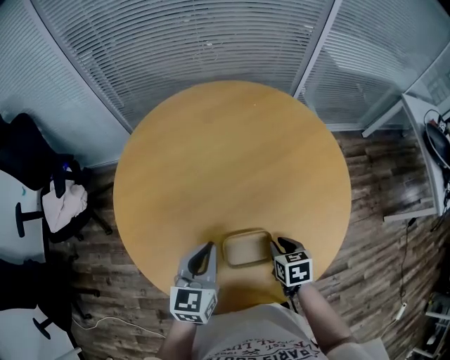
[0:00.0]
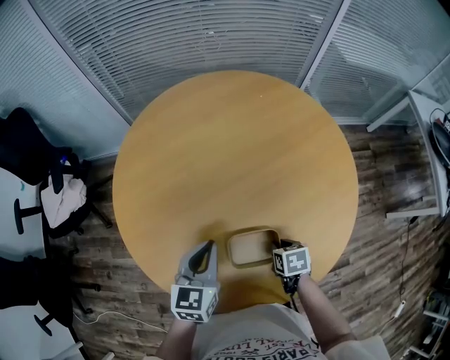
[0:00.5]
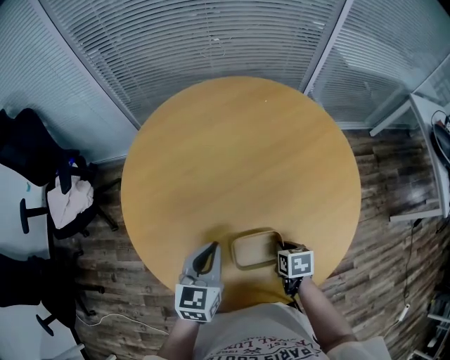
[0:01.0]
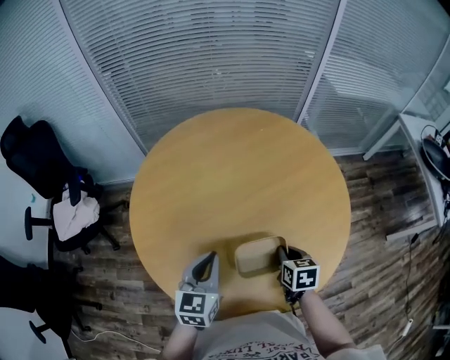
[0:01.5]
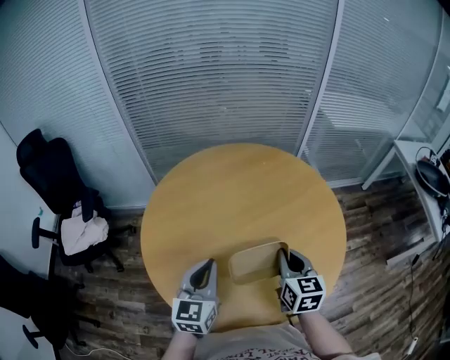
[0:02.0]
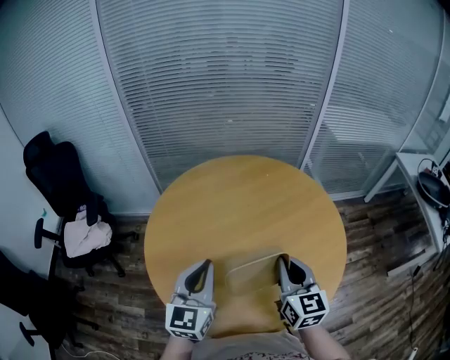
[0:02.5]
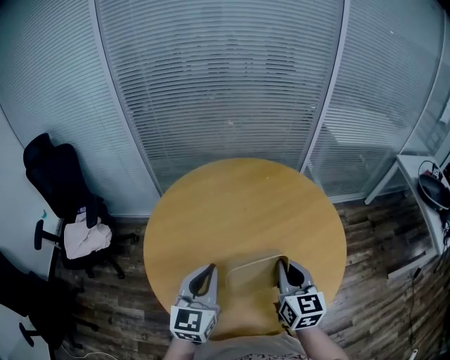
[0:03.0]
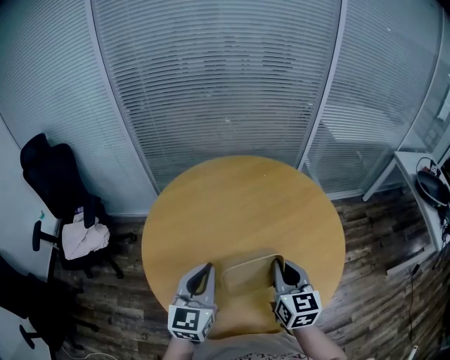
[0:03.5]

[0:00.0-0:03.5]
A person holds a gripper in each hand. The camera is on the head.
0:00.0 to 0:02.0: The left gripper shifts roughly 10 cm upward. Meanwhile the right gripper goes approximately 20 cm upward, and points its fingers approximately 30 degrees further upward.

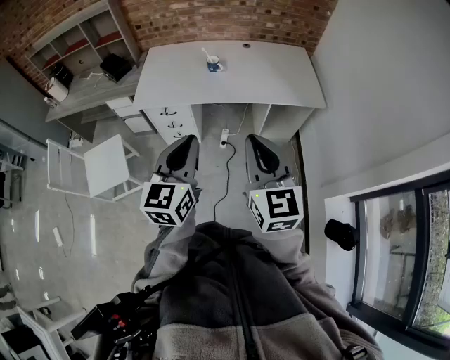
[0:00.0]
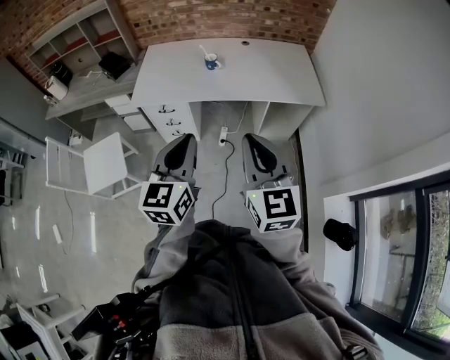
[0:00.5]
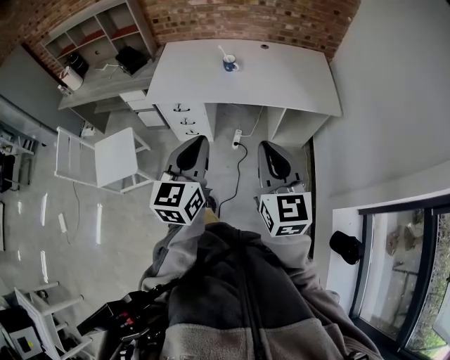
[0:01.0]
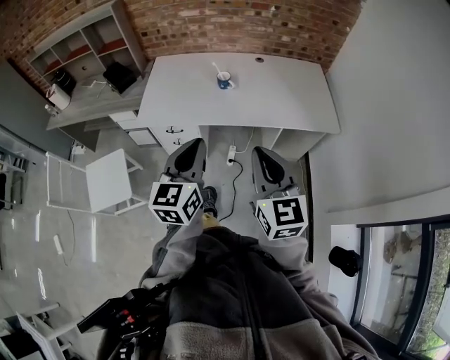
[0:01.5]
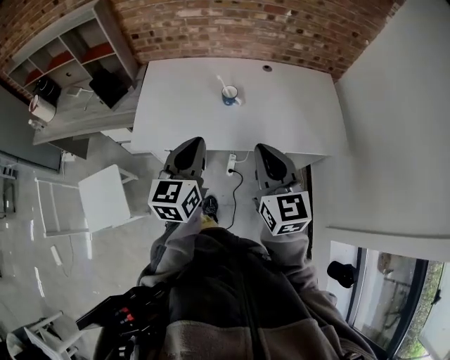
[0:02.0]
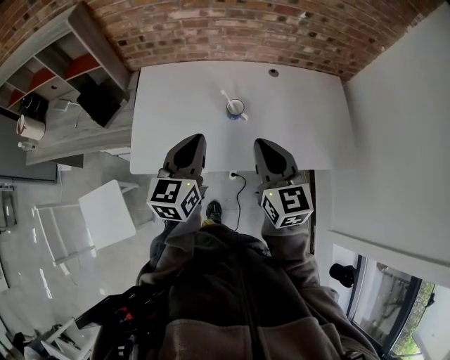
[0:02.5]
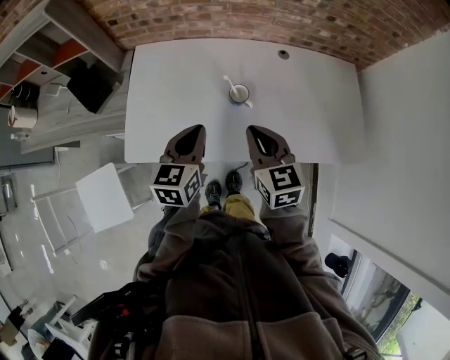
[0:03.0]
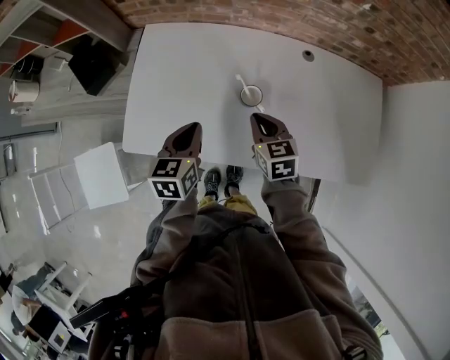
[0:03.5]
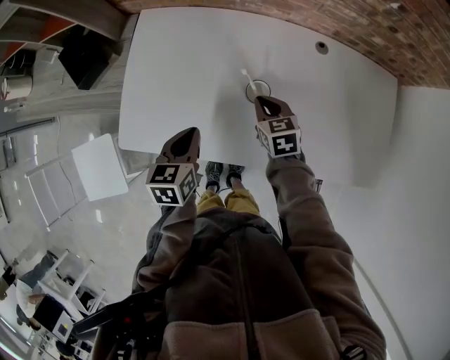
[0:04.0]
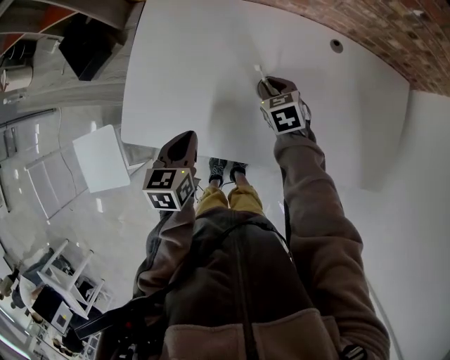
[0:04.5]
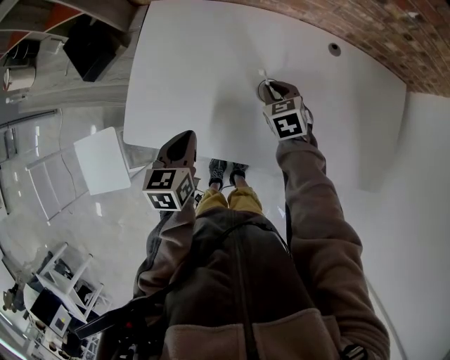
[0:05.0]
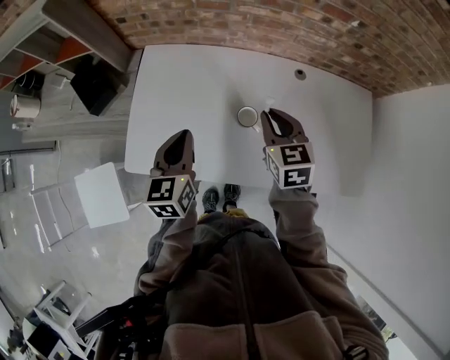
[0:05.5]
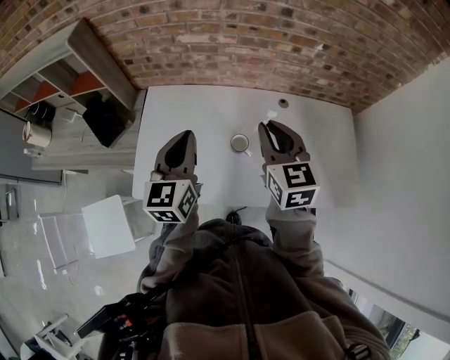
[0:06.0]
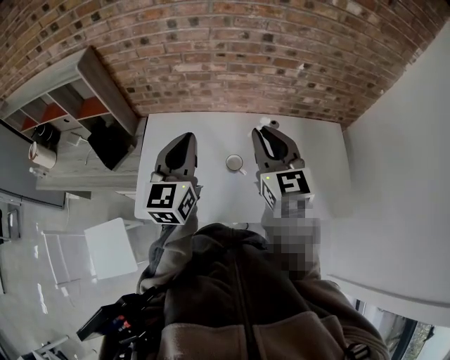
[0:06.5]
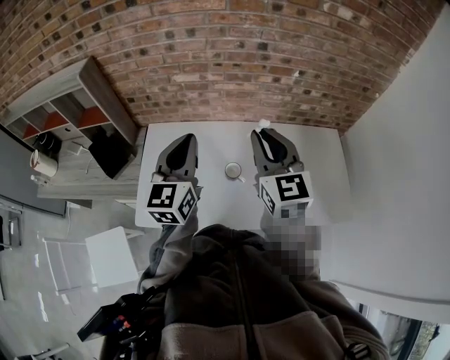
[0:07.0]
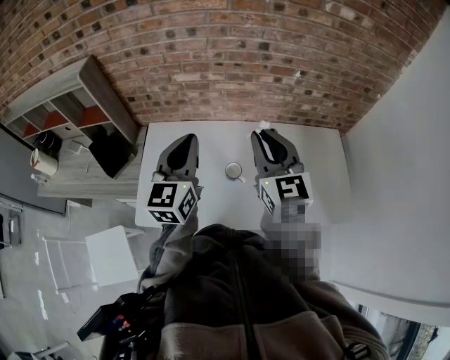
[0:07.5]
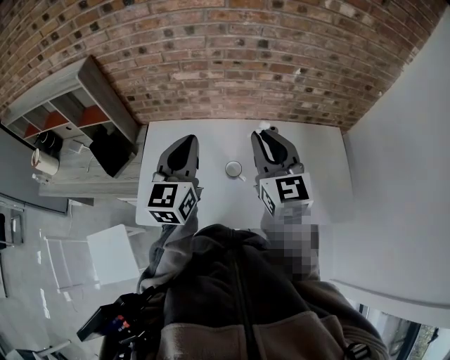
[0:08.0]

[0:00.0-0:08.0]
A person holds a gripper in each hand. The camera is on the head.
0:00.0 to 0:02.0: Both grippers travel together forward, about 30 cm.
0:02.0 to 0:04.0: The left gripper shifts some 30 cm forward and downward, and tips its fingers downward by about 30 degrees; the right gripper travels forward and downward by about 50 cm, and tilts its fingers roughly 40 degrees downward.
0:04.0 to 0:06.0: The grippers both shift upward by about 30 cm. The left gripper angles its fingers upward, by approximately 30 degrees, while the right gripper turns by about 30 degrees.
0:06.0 to 0:08.0: The two grippers go some 5 cm upward.

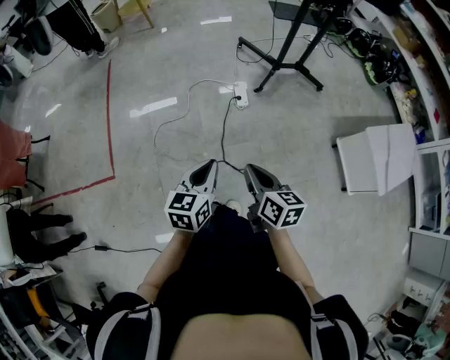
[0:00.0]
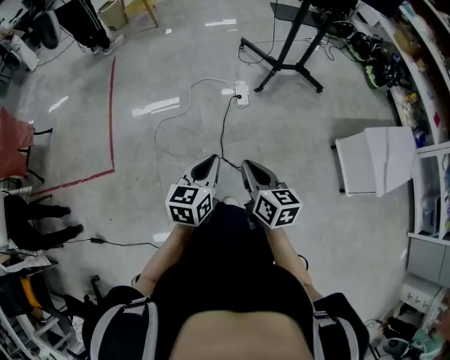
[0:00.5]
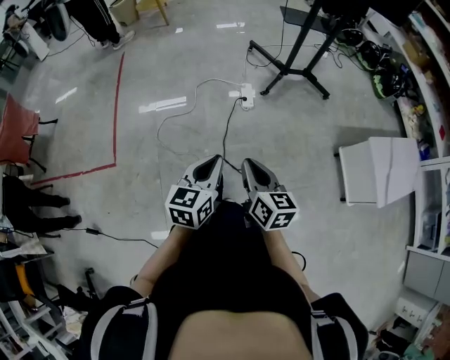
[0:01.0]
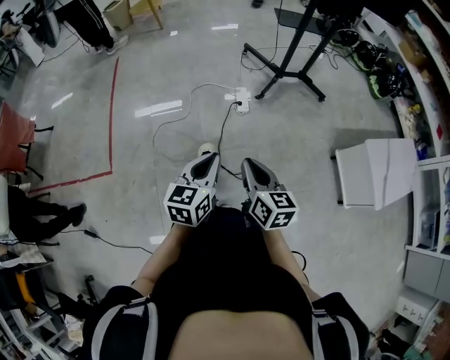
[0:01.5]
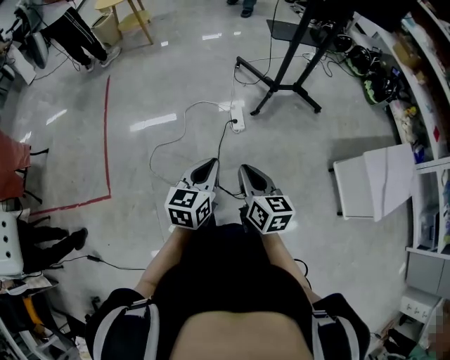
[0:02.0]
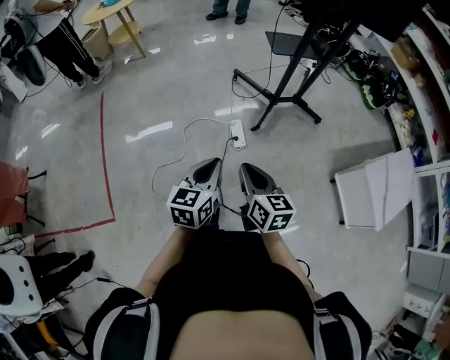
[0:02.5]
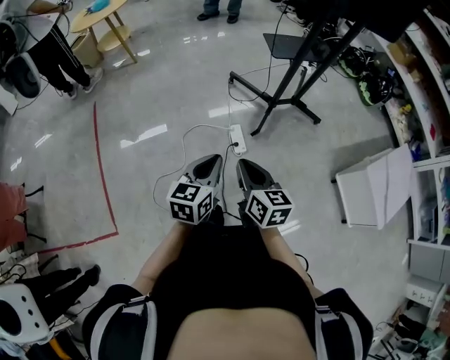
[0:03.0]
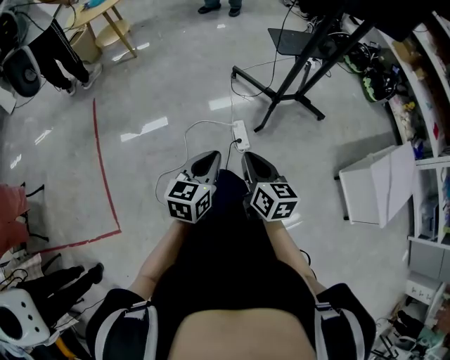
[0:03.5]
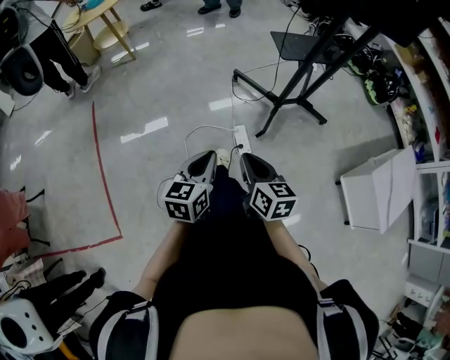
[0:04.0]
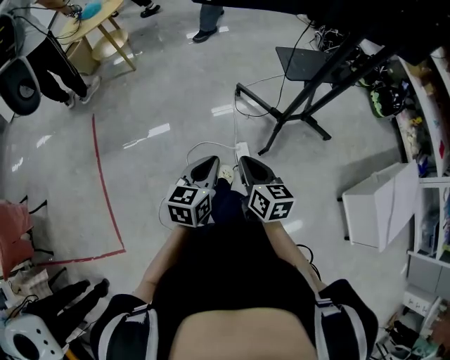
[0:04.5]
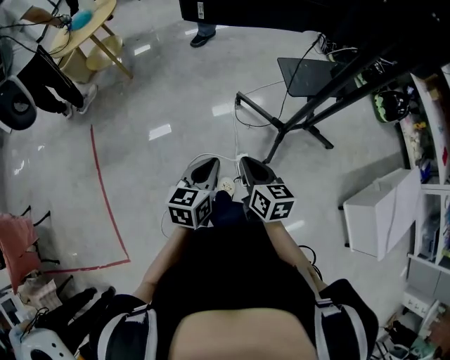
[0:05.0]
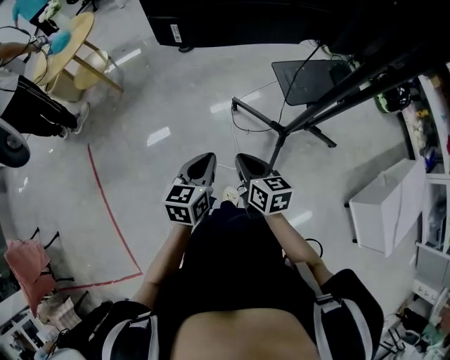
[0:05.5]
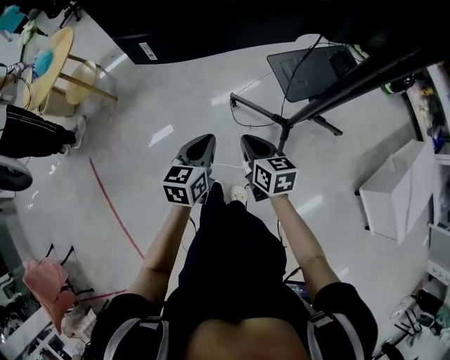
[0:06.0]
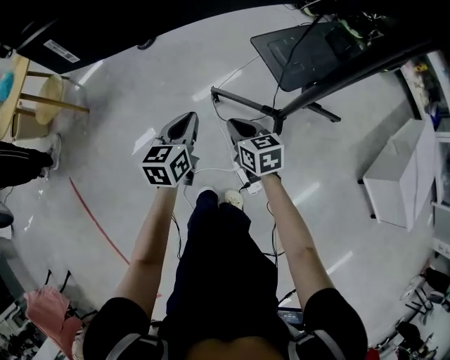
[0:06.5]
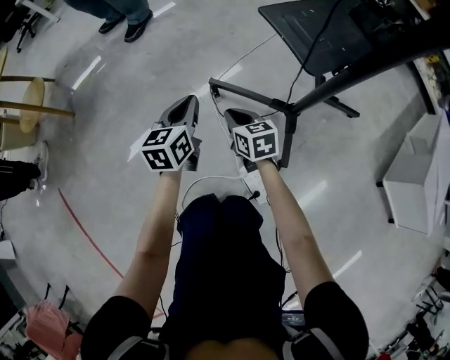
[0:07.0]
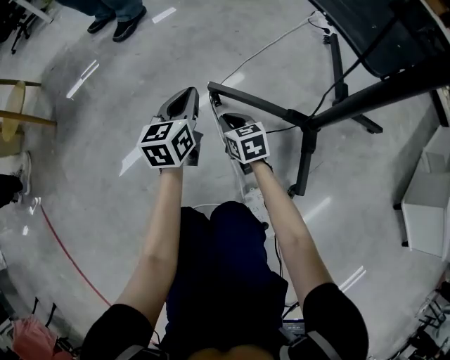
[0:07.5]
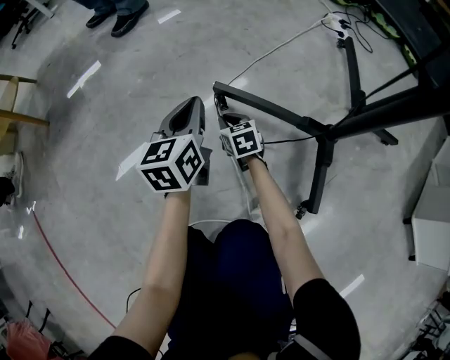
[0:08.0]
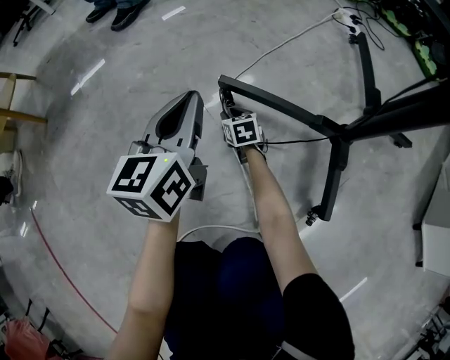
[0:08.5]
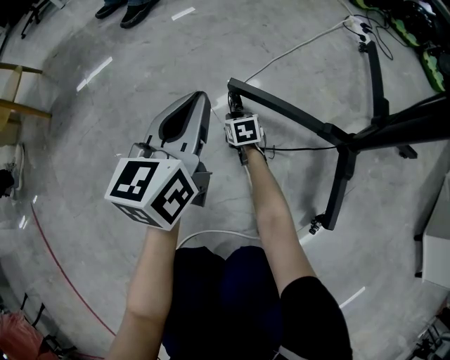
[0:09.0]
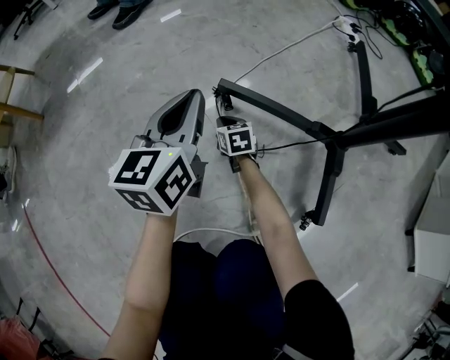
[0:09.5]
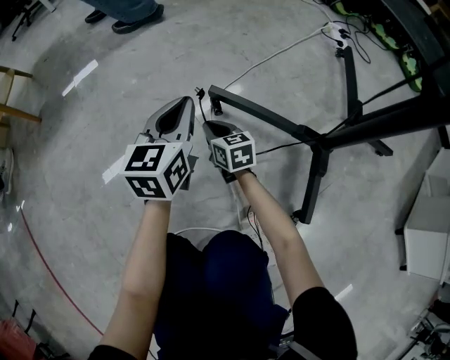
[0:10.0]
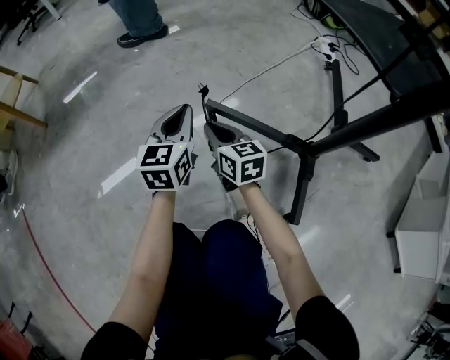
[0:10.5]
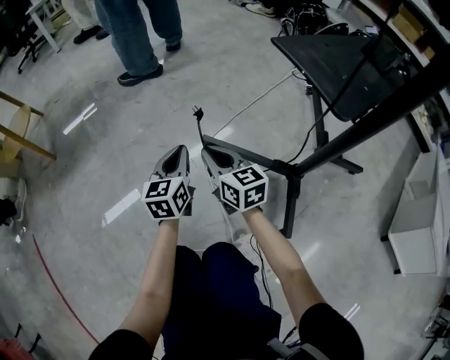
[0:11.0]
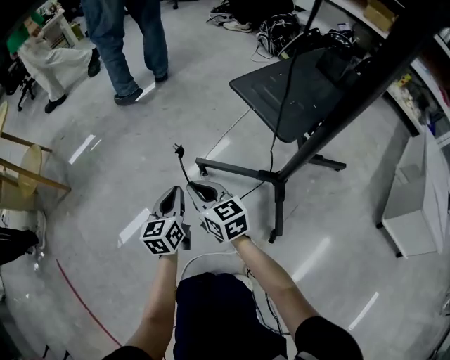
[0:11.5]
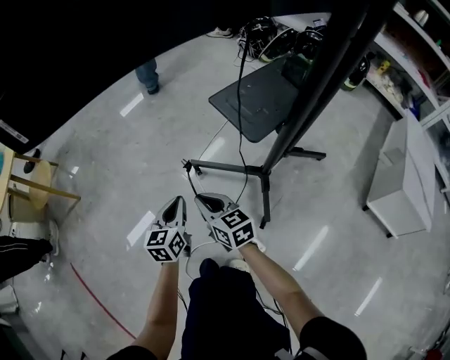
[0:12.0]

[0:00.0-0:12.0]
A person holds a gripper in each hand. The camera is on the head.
0:00.0 to 0:02.0: The grippers both shift forward by about 10 cm.
0:02.0 to 0:04.0: The left gripper goes about 35 cm forward and to the left, while the right gripper travels forward by approximately 30 cm.
0:04.0 to 0:06.0: The two grippers travel together, forward, approximately 40 cm.
0:06.0 to 0:08.0: The left gripper moves downward and forward, roughly 60 cm; the right gripper heads downward, covering some 70 cm.
0:08.0 to 0:10.0: The right gripper moves approximately 10 cm downward and comes back.
0:10.0 to 0:12.0: The left gripper goes approximately 30 cm upward and backward. Meanwhile the right gripper shifts about 50 cm upward.

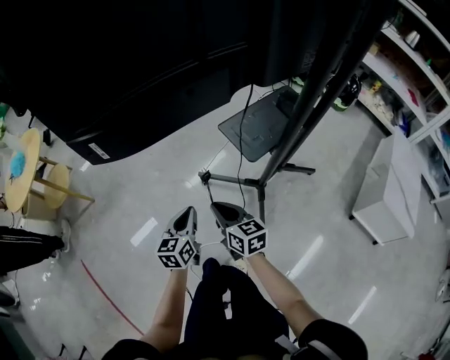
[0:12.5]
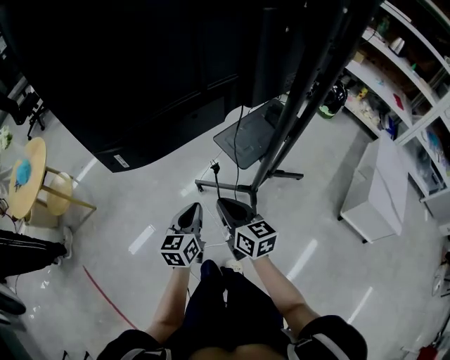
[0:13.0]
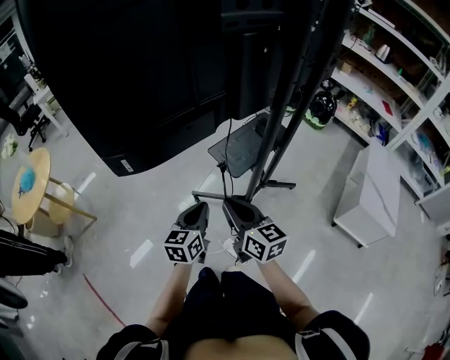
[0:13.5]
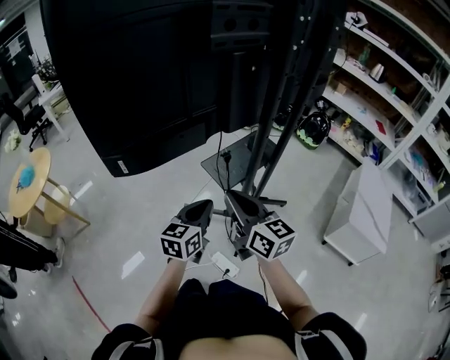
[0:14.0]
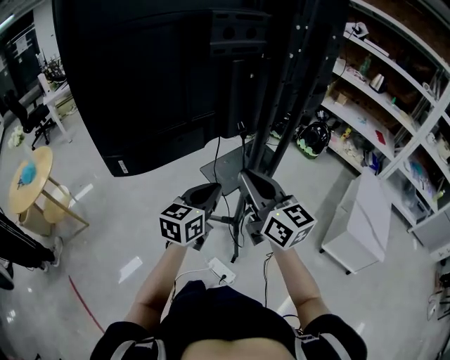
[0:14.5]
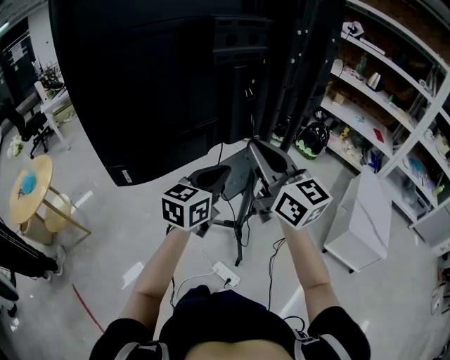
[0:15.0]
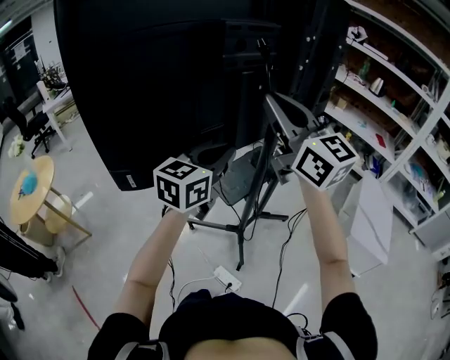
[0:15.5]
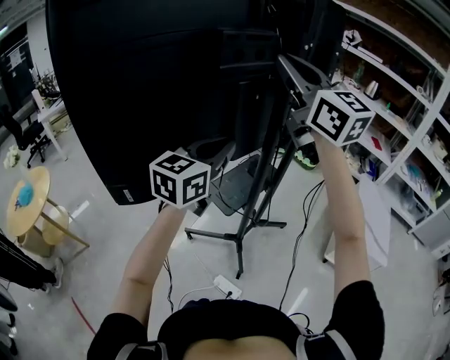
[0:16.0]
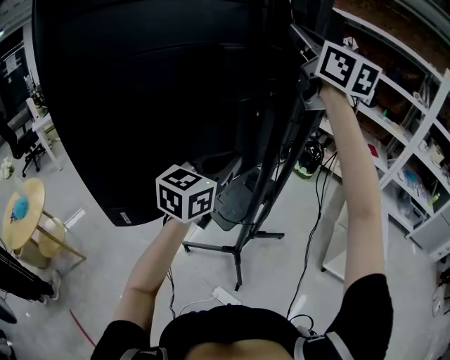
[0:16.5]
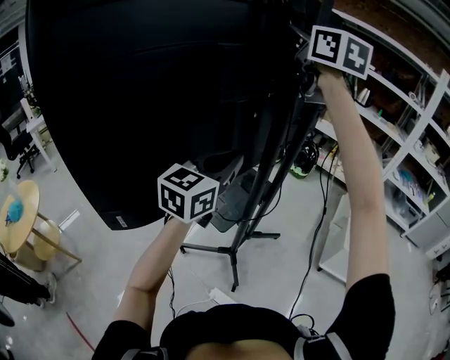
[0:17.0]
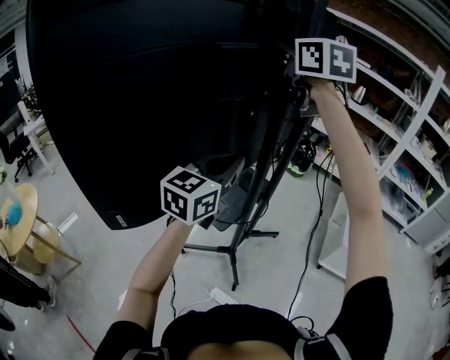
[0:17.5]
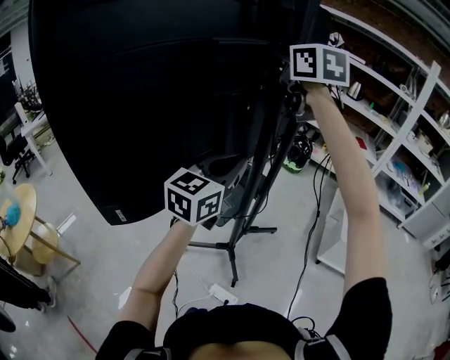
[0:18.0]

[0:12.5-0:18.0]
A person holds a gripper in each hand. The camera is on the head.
0:12.5 to 0:14.5: The left gripper heads upward and to the right, covering some 35 cm, and swivels about 30 degrees, while the right gripper moves upward, approximately 40 cm, and rotates about 30 degrees.
0:14.5 to 0:16.0: The right gripper moves upward and forward, about 30 cm, and turns by some 30 degrees. The left gripper heads upward and forward, covering approximately 20 cm.
0:16.0 to 0:18.0: The right gripper heads forward, covering approximately 10 cm, and rotates some 30 degrees.
